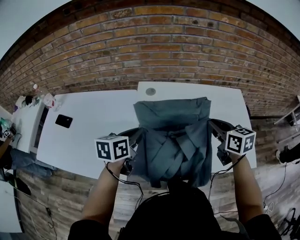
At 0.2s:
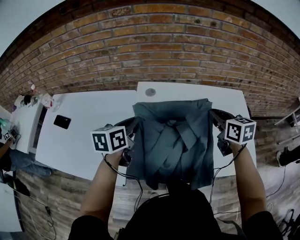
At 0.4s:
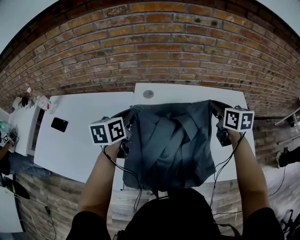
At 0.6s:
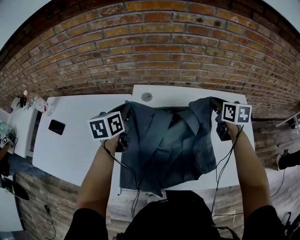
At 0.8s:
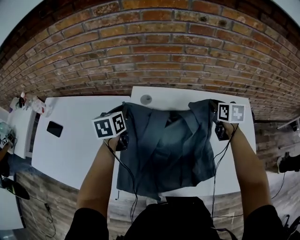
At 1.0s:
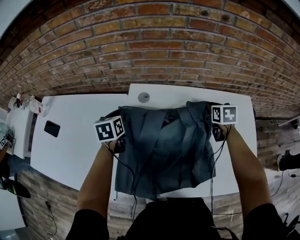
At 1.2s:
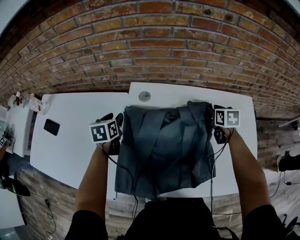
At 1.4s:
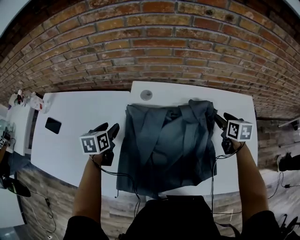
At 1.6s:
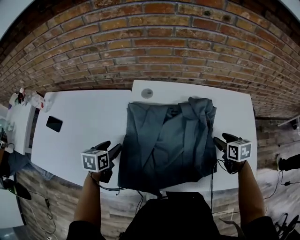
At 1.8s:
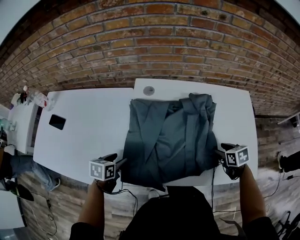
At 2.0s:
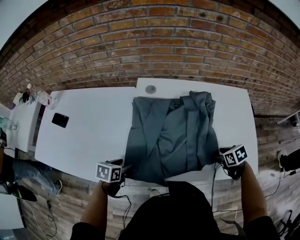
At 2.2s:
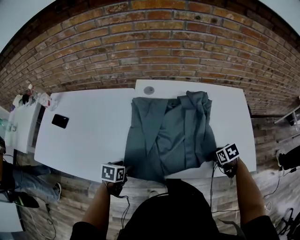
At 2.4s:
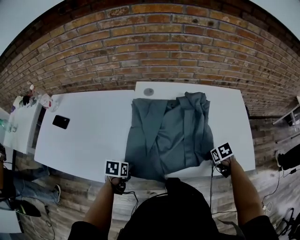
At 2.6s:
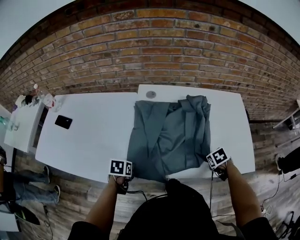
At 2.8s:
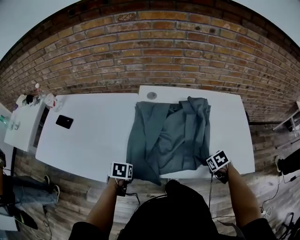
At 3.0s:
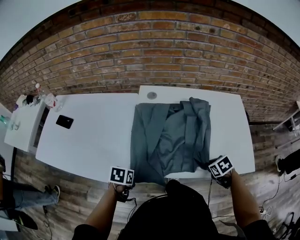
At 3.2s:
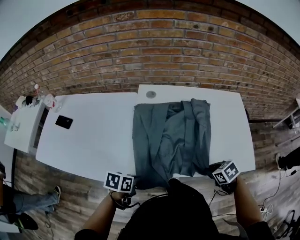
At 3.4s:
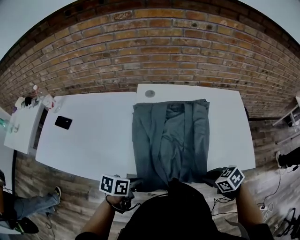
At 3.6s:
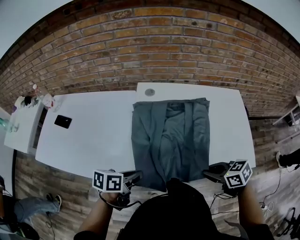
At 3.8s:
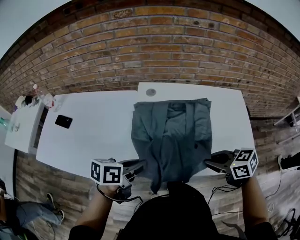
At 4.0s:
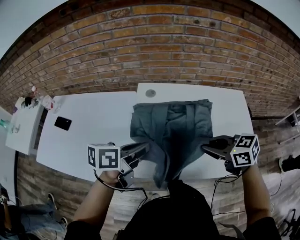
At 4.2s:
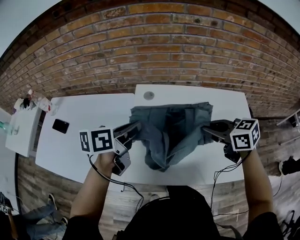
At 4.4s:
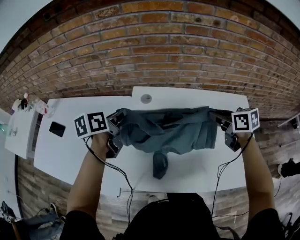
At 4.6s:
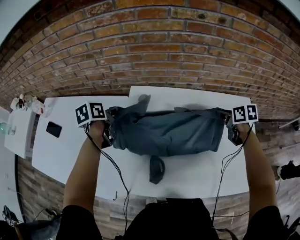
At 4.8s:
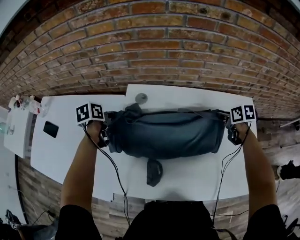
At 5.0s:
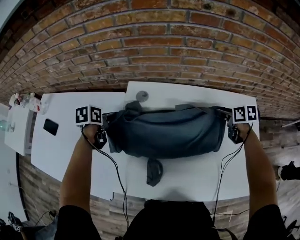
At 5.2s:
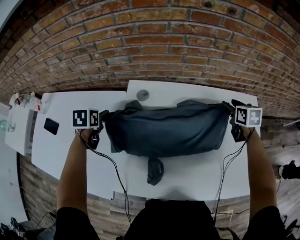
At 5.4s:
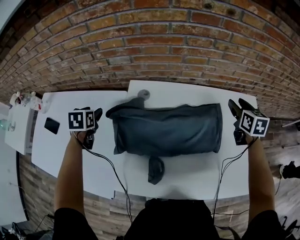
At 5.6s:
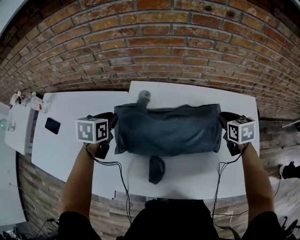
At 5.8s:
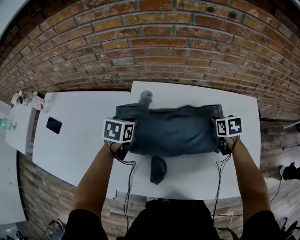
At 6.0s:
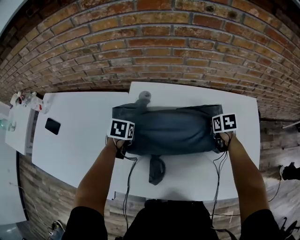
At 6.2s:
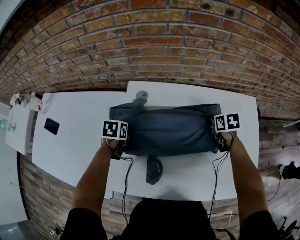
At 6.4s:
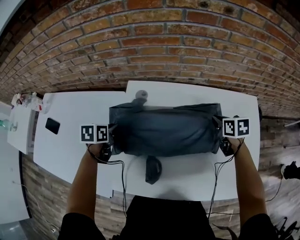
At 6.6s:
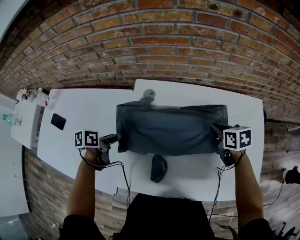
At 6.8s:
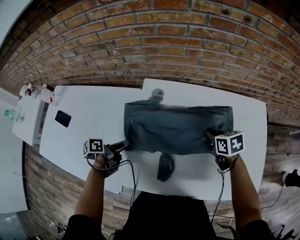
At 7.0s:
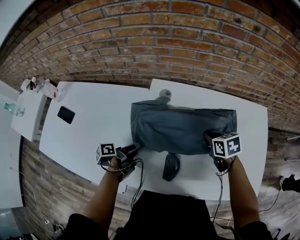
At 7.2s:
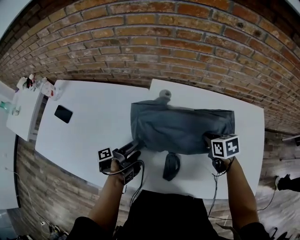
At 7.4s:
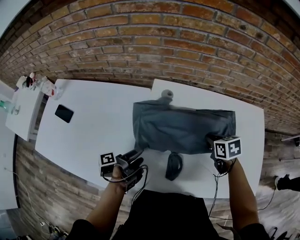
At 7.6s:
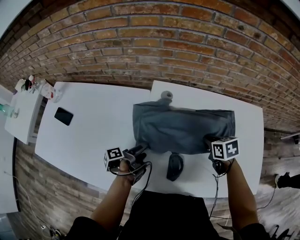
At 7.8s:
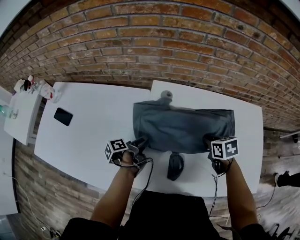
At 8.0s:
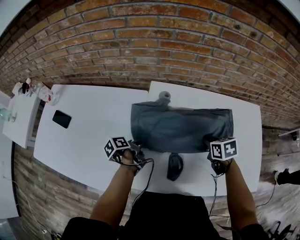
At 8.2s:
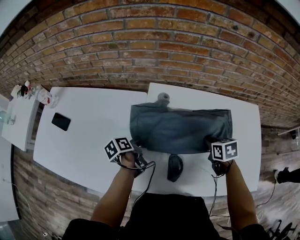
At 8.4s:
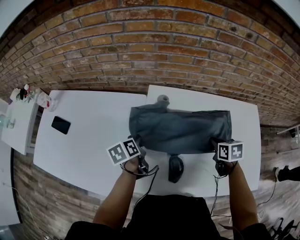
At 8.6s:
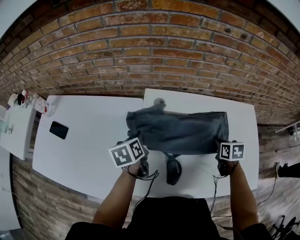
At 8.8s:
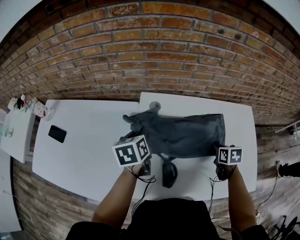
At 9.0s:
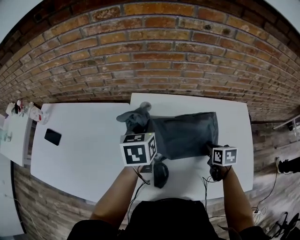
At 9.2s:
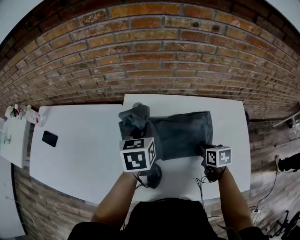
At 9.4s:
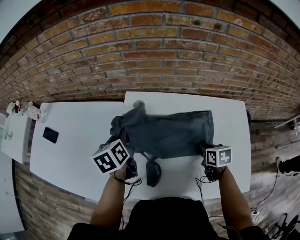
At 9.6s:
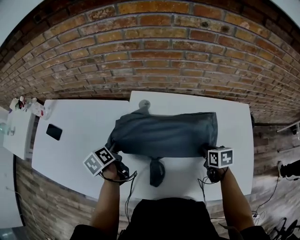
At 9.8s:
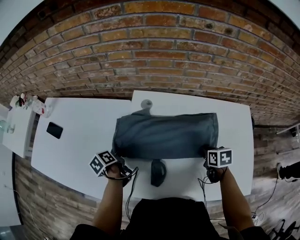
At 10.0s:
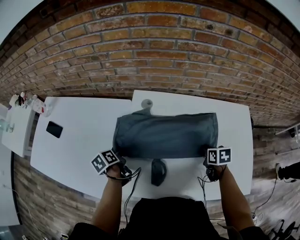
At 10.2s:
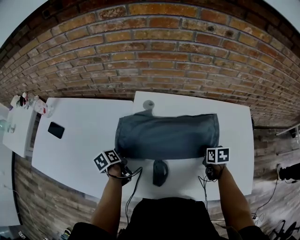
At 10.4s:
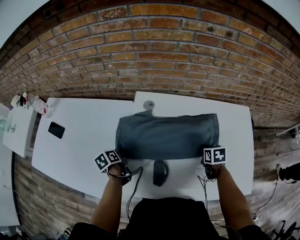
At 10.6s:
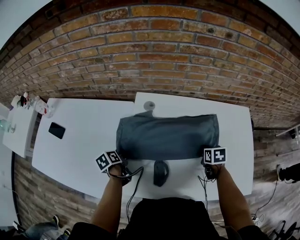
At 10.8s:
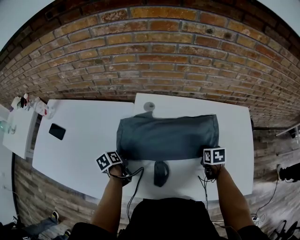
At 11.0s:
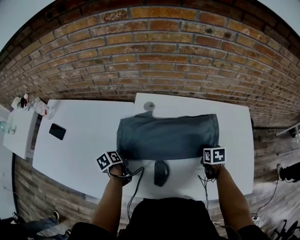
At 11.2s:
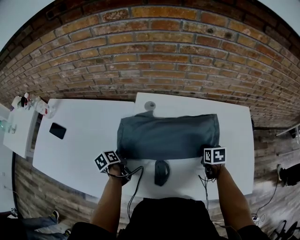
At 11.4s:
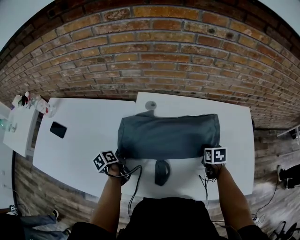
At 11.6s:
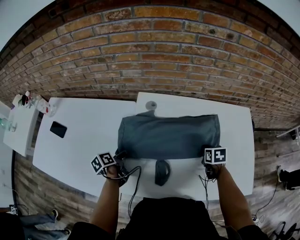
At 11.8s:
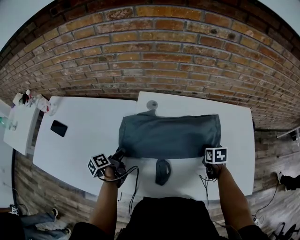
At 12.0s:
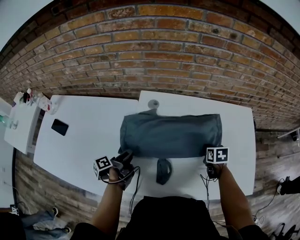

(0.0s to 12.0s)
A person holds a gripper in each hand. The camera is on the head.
0.0s - 1.6s: The right gripper travels downward and to the right by roughly 20 cm, goes forward and returns, some 25 cm each way, swivels some 20 degrees, and opens its fingers. Meanwhile the left gripper moves downward and to the left, roughly 20 cm, goes forward and returns, some 20 cm each way, changes its angle by roughly 20 degrees, and opens.
1.6s - 3.0s: The left gripper shifts by roughly 20 cm, and closes up, while the right gripper shifts by approximately 20 cm, swivels about 30 degrees, and closes up.
3.0s - 4.4s: The right gripper shifts by about 30 cm, and points its fingers roughly 40 degrees further upward. Meanwhile the left gripper shifts by roughly 35 cm, and angles its fingers upward, by some 30 degrees.
4.4s - 6.0s: The right gripper moves up and down over about 20 cm, changing direction 2 times, swivels some 30 degrees, and opens and closes again, while the left gripper goes up and down, approximately 20 cm each way, reversing 2 times, tilts its fingers roughly 30 degrees downward, and opens, then closes again.
6.0s - 7.6s: The left gripper shifts about 15 cm backward, twists about 80 degrees counterclockwise, seen from behind, and opens. The right gripper goes some 15 cm to the left and backward.
7.6s - 9.0s: The left gripper travels upward, forward and to the right by about 25 cm, twists approximately 80 degrees clockwise, seen from behind, and closes; the right gripper moves to the right, about 10 cm.
9.0s - 10.4s: The left gripper shifts roughly 30 cm downward, to the left and backward, and rolls counterclockwise, seen from behind, by approximately 50 degrees.
10.4s - 12.0s: The left gripper changes place by roughly 5 cm, rotates some 40 degrees, and opens its fingers.

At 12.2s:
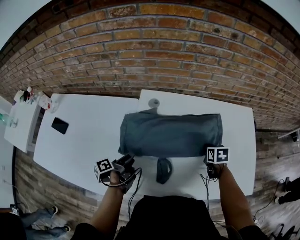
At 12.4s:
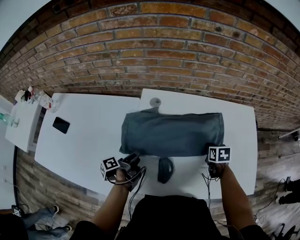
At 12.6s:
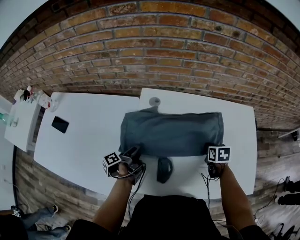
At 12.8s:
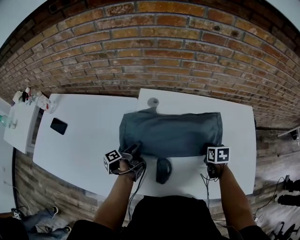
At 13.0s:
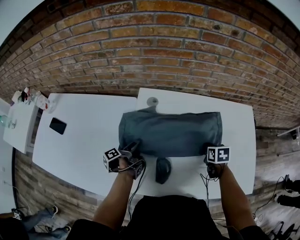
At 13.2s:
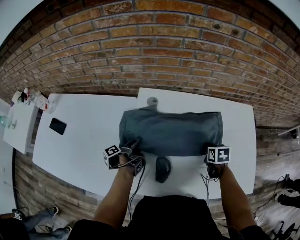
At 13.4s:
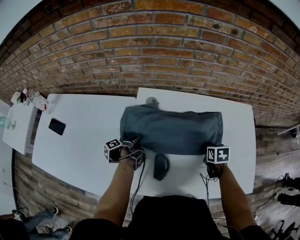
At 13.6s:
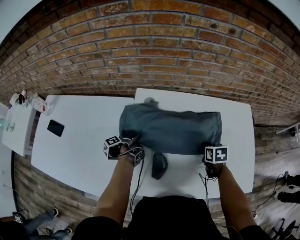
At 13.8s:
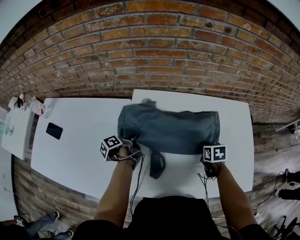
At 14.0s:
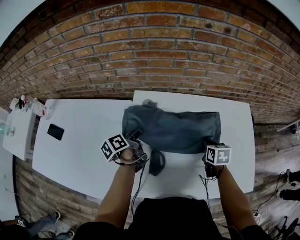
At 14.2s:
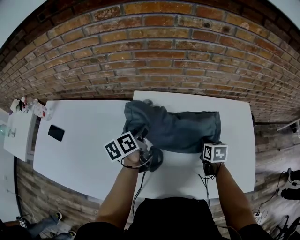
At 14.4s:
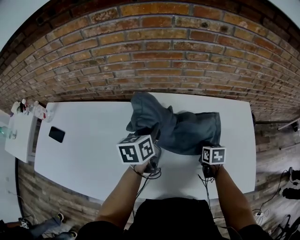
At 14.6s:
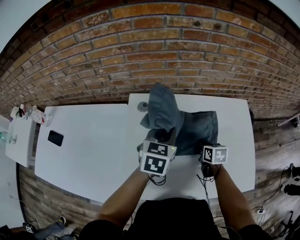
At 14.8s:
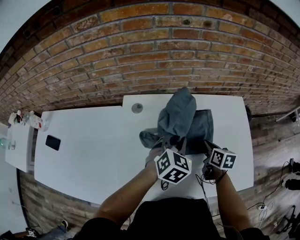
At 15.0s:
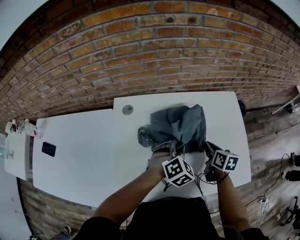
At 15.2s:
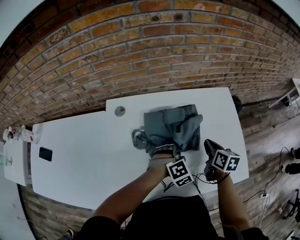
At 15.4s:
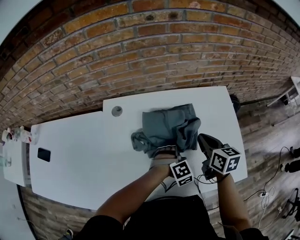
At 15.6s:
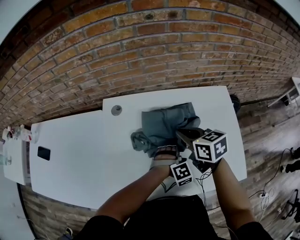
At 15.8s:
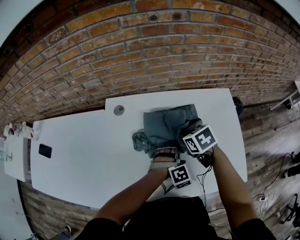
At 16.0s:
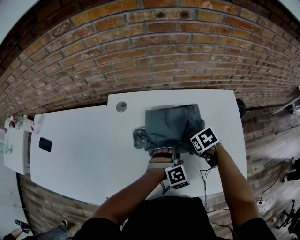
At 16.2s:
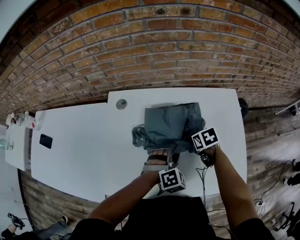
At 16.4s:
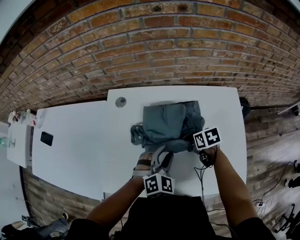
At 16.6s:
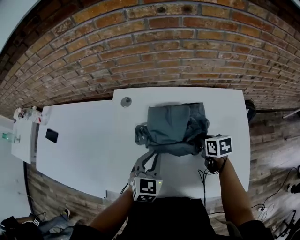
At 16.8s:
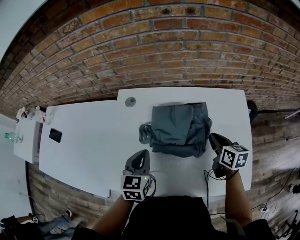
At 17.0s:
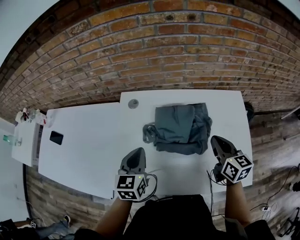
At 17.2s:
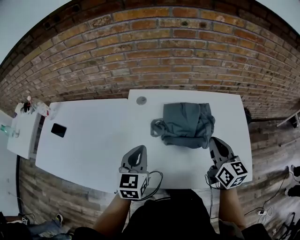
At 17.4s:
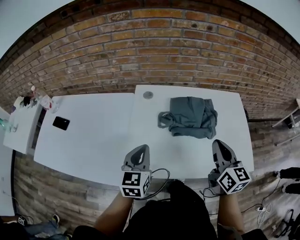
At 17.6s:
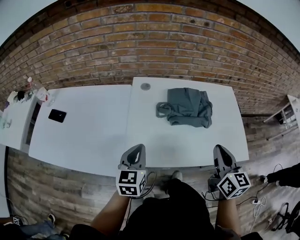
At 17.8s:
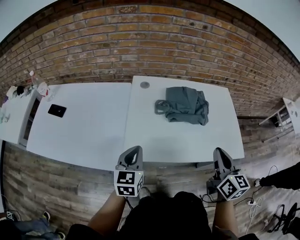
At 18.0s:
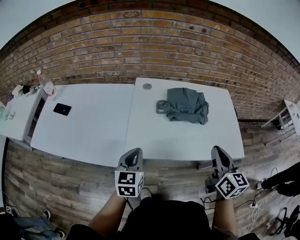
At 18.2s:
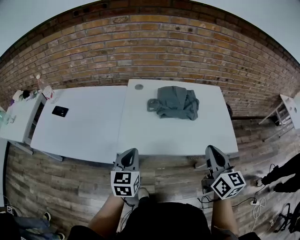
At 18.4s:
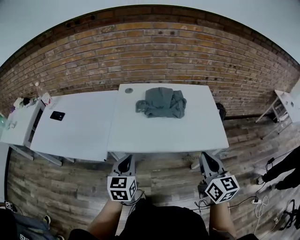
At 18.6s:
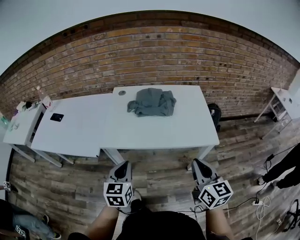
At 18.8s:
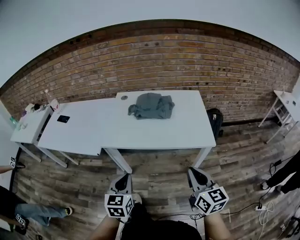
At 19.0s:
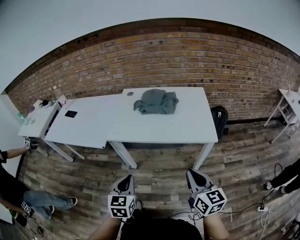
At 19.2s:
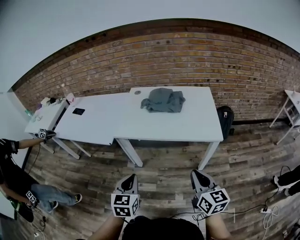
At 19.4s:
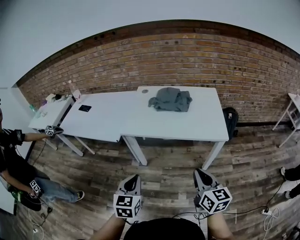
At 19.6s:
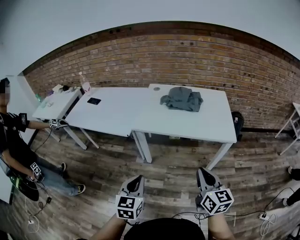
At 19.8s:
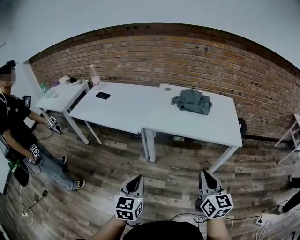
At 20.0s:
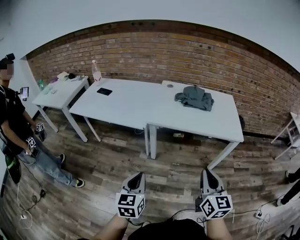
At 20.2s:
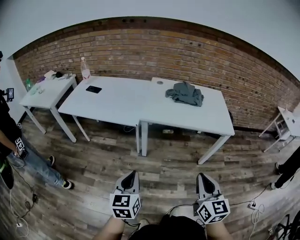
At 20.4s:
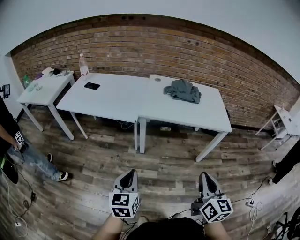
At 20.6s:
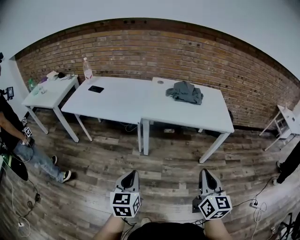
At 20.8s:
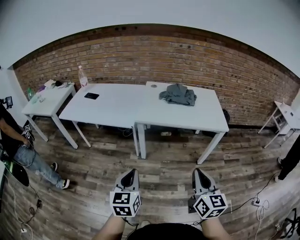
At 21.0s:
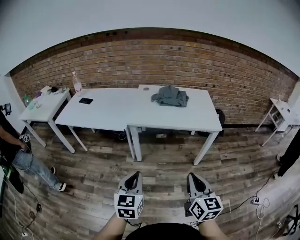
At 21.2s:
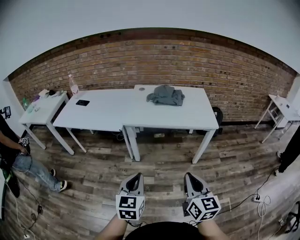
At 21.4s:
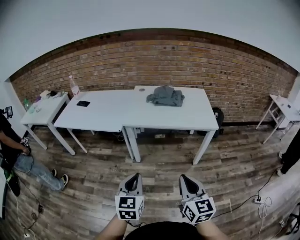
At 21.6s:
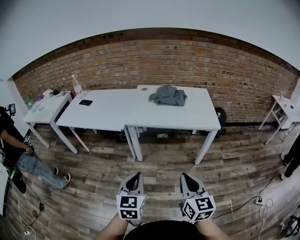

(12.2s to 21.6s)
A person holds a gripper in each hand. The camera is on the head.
12.2s - 13.8s: The left gripper is displaced forward by roughly 10 cm, and closes up.
13.8s - 15.4s: The left gripper travels to the right by approximately 35 cm, and rotates around the line of its fingers by some 150 degrees, clockwise from behind; the right gripper shifts roughly 15 cm upward and to the right, and points its fingers about 30 degrees further upward.
15.4s - 17.0s: The right gripper goes downward and returns, some 15 cm each way. Meanwhile the left gripper heads to the left and upward, covering approximately 25 cm, and rolls counterclockwise, seen from behind, by approximately 70 degrees.
17.0s - 18.4s: Both grippers move backward, some 35 cm.
18.4s - 20.0s: The right gripper is displaced backward and to the left by some 30 cm; the left gripper shifts approximately 35 cm backward.
20.0s - 21.6s: The right gripper moves backward, approximately 10 cm; the left gripper goes some 10 cm to the right.

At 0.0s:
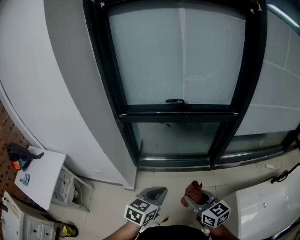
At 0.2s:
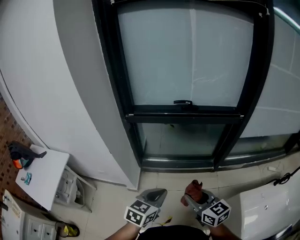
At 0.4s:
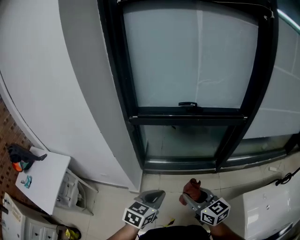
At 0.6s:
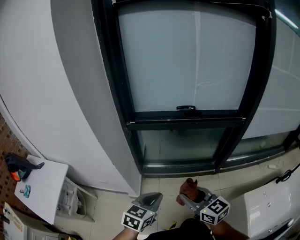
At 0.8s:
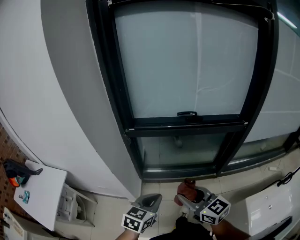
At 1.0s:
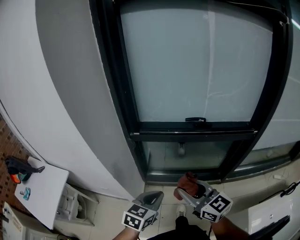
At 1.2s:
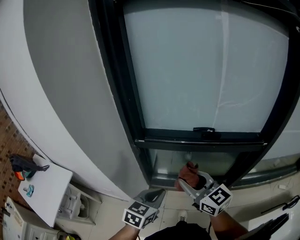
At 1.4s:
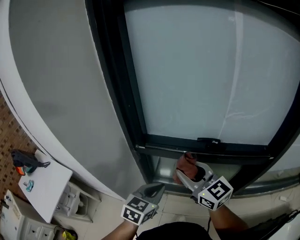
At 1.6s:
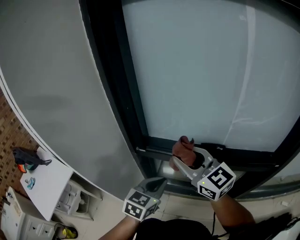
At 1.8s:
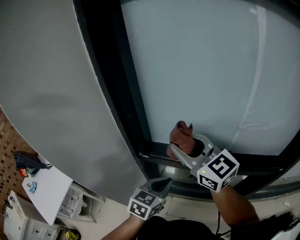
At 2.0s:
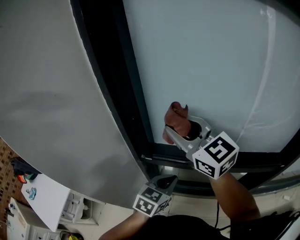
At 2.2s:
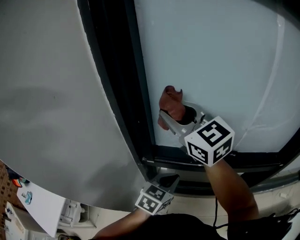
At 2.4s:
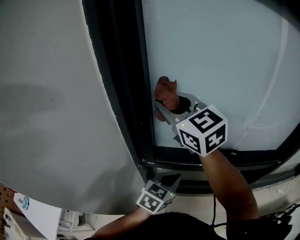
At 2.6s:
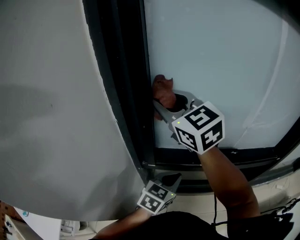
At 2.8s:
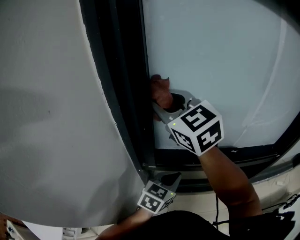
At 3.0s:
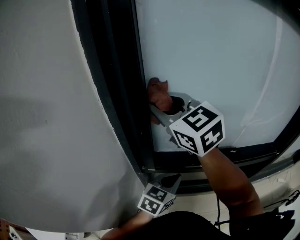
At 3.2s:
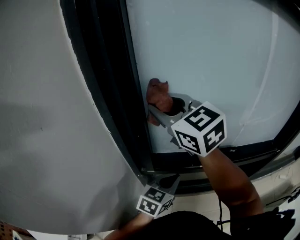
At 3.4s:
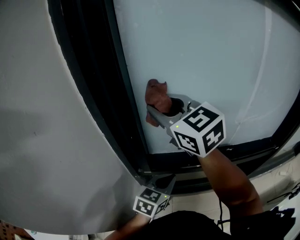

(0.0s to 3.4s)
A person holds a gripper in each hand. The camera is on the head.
0.0s - 1.6s: The right gripper travels forward and upward by about 50 cm, and turns by approximately 30 degrees, while the left gripper shifts roughly 35 cm forward.
1.6s - 3.4s: The right gripper is displaced forward, upward and to the left by some 25 cm; the left gripper shifts about 10 cm forward.
